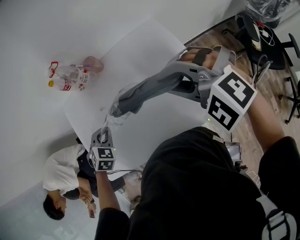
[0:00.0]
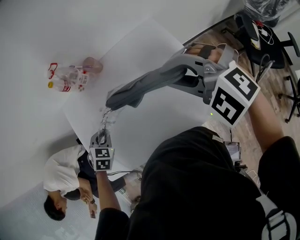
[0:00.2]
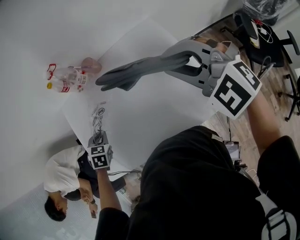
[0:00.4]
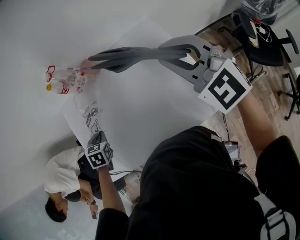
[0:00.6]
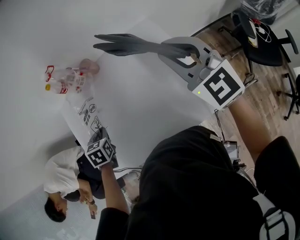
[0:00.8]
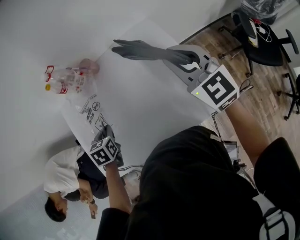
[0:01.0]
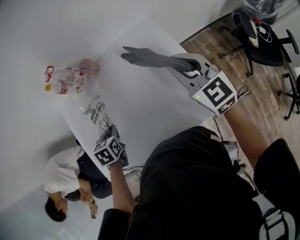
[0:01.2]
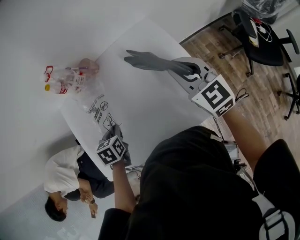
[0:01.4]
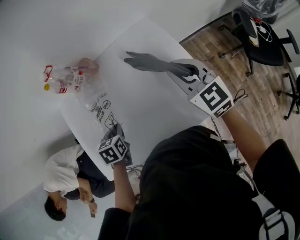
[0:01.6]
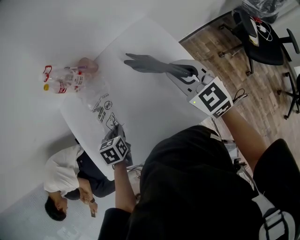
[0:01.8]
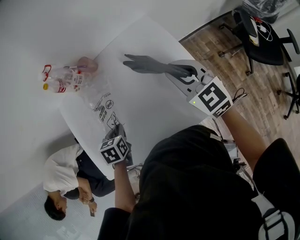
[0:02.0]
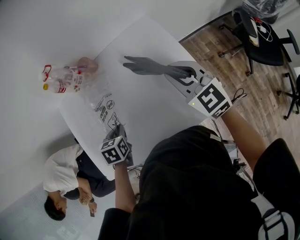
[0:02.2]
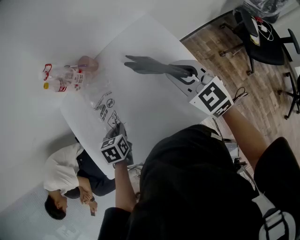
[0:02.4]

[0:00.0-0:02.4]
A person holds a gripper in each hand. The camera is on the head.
0:00.0 to 0:01.2: The left gripper rolls counterclockwise, seen from behind, by roughly 50 degrees; the right gripper goes some 10 cm to the right and downward, and rolls clockwise, seen from behind, by roughly 50 degrees.
0:01.2 to 0:02.4: The grippers move only a little.

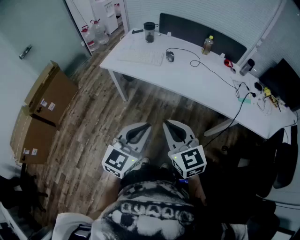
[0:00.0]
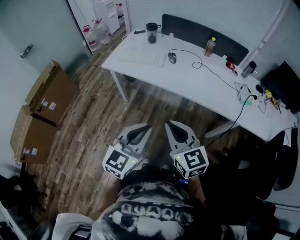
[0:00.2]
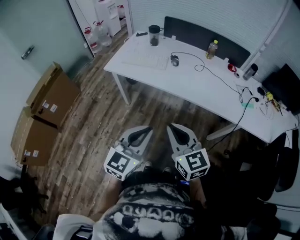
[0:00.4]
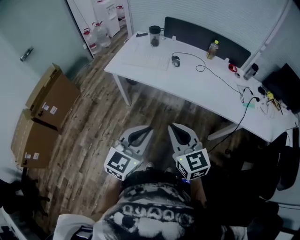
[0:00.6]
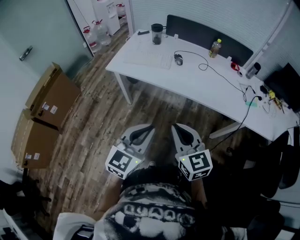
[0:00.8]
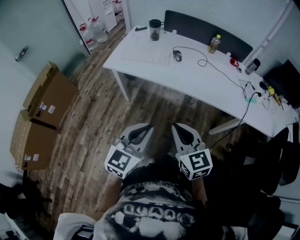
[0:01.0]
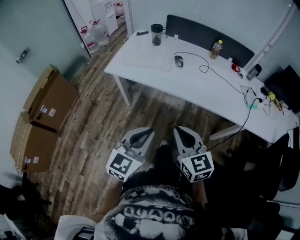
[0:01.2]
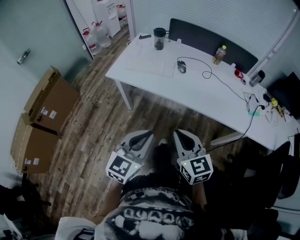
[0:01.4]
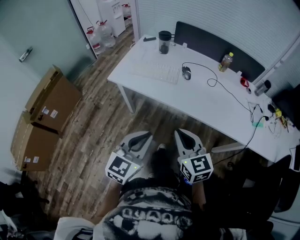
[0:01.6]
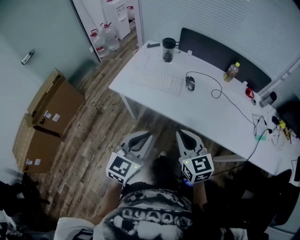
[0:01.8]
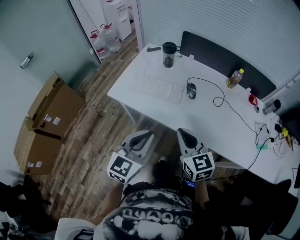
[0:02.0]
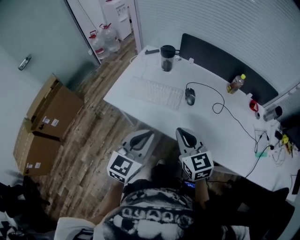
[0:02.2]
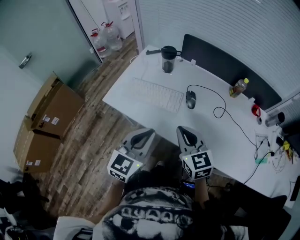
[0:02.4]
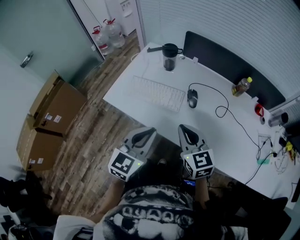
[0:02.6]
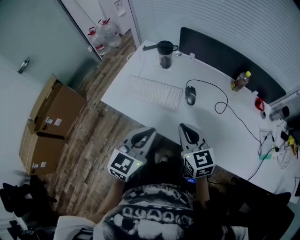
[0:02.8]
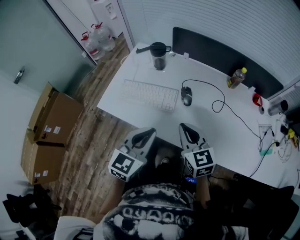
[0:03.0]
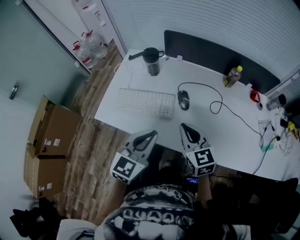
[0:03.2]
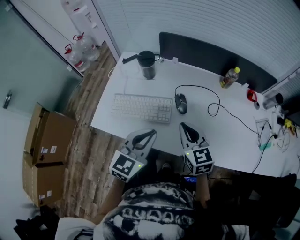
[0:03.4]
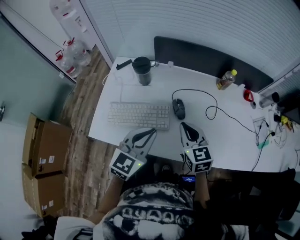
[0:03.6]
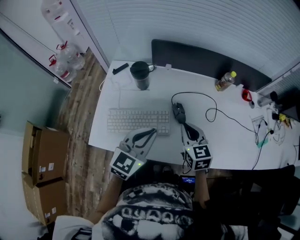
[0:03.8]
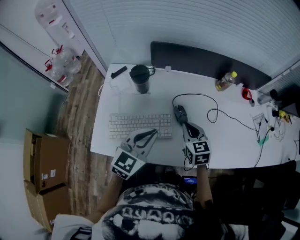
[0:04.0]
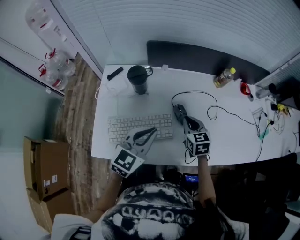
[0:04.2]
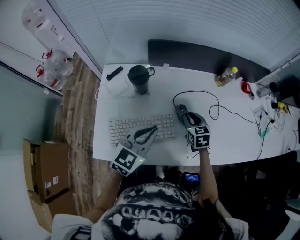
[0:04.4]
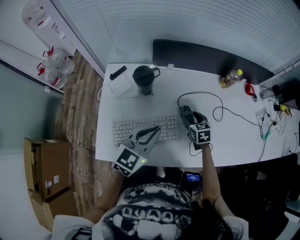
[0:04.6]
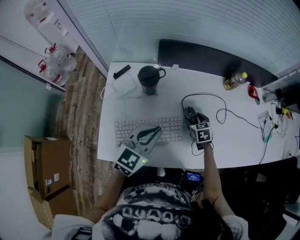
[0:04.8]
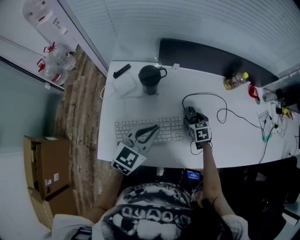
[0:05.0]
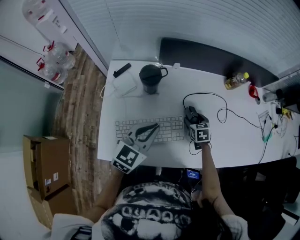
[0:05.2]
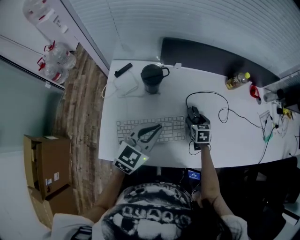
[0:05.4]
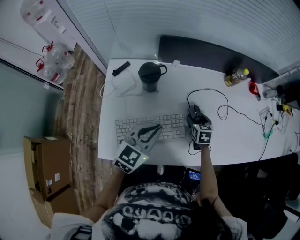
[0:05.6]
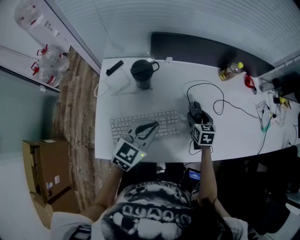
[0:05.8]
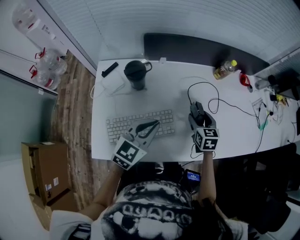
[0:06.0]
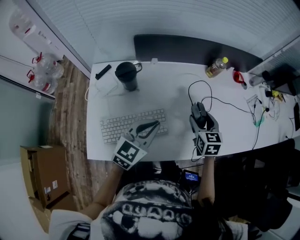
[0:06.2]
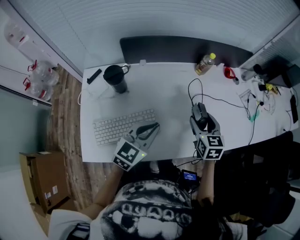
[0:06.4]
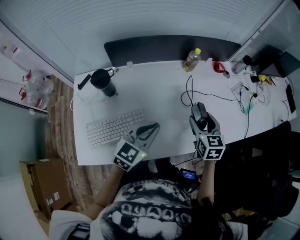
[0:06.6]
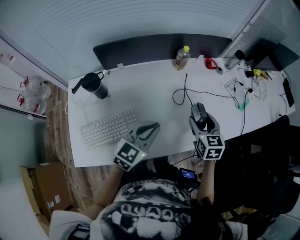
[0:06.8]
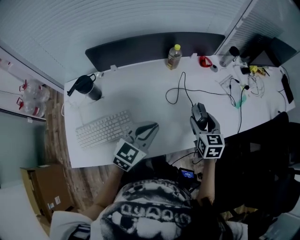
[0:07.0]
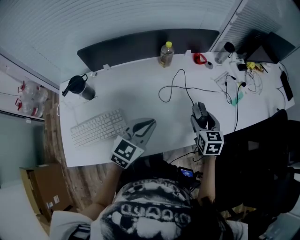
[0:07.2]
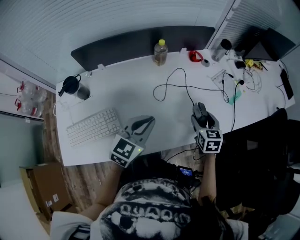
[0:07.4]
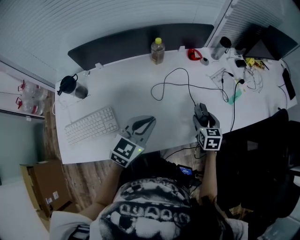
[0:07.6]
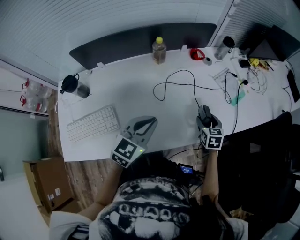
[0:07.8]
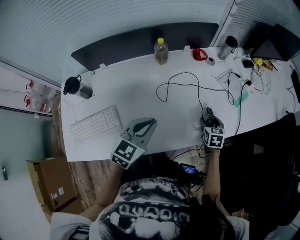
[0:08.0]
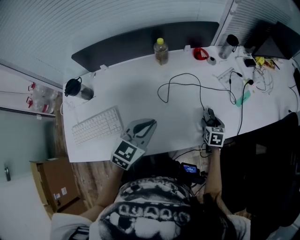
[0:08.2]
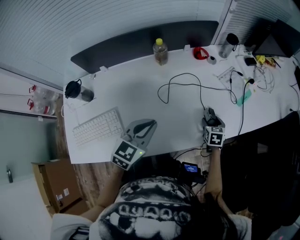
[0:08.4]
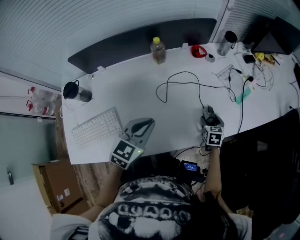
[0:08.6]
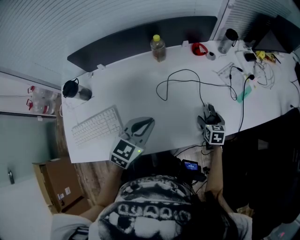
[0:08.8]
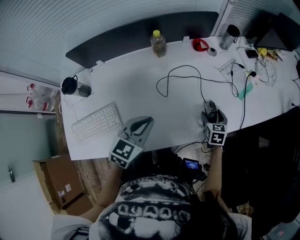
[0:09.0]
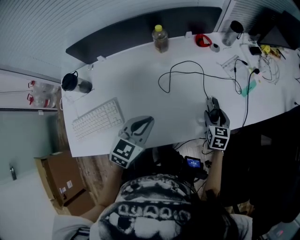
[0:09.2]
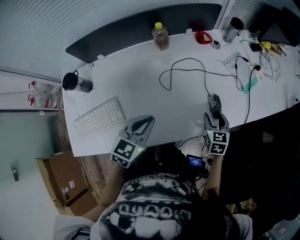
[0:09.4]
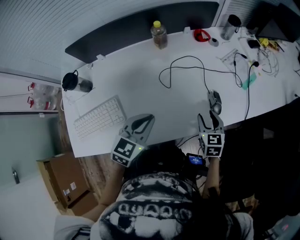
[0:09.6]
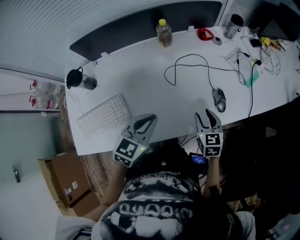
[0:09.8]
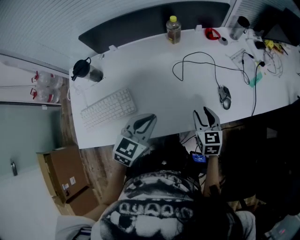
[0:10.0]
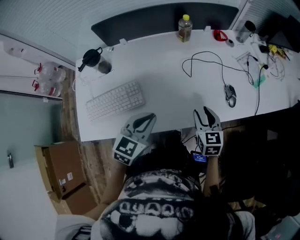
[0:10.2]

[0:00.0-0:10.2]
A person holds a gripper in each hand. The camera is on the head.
0:00.0 to 0:01.4: The left gripper shifts roughly 10 cm forward and to the left. The right gripper goes approximately 10 cm forward.
0:01.4 to 0:03.0: Both grippers move forward, approximately 35 cm.
0:03.0 to 0:04.4: The left gripper ends up some 20 cm from where it was, and turns by some 30 degrees. The right gripper moves approximately 25 cm, and swivels approximately 40 degrees.
0:04.4 to 0:05.8: The right gripper opens.
0:05.8 to 0:07.2: Both grippers travel together to the right, approximately 30 cm.
0:07.2 to 0:08.8: The left gripper moves to the right, roughly 5 cm, while the right gripper heads downward and to the right, covering about 20 cm.
0:08.8 to 0:10.2: The left gripper goes about 15 cm backward and to the left, while the right gripper is displaced to the left, backward and upward by some 25 cm, and closes its fingers.

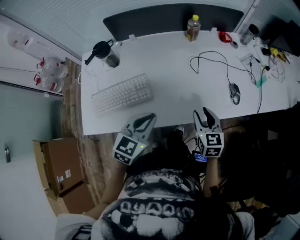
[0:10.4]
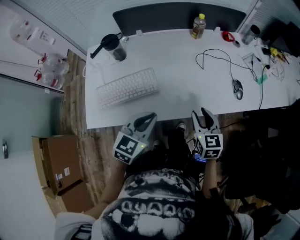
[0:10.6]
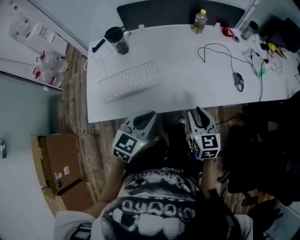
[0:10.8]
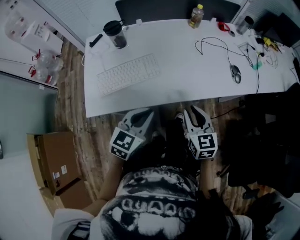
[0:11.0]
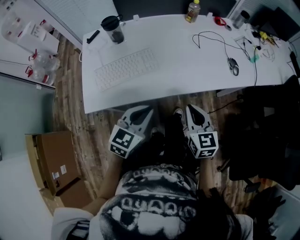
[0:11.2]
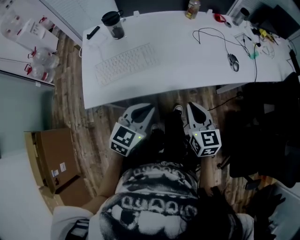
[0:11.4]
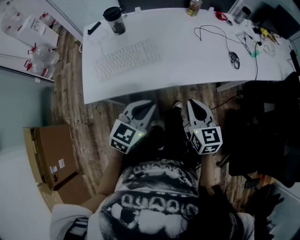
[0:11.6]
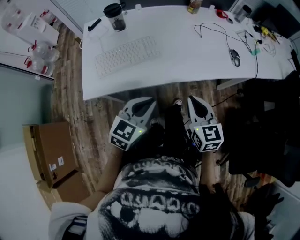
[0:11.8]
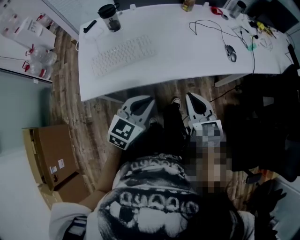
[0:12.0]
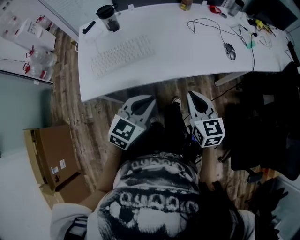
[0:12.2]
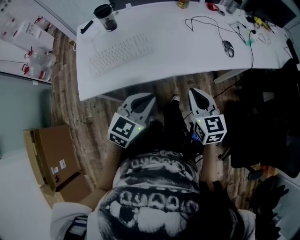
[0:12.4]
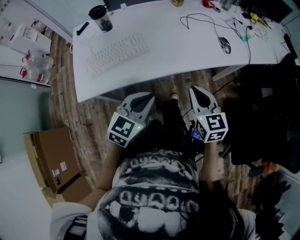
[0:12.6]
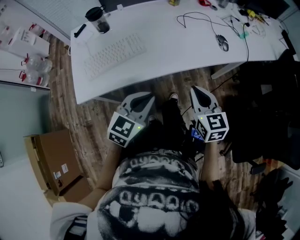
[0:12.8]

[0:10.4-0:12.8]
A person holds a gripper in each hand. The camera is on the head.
0:10.4 to 0:11.6: The left gripper goes roughly 15 cm backward. The right gripper goes some 20 cm backward and to the left, and closes up.
0:11.6 to 0:12.8: Both grippers move to the right, about 5 cm.

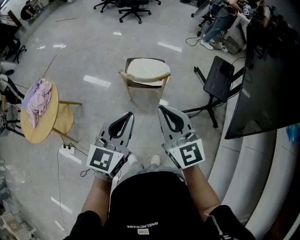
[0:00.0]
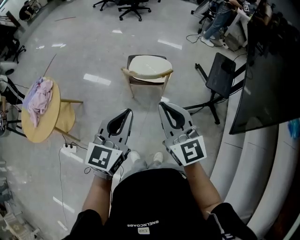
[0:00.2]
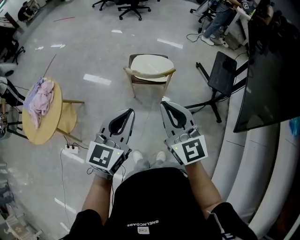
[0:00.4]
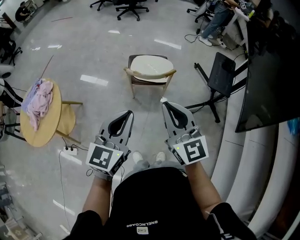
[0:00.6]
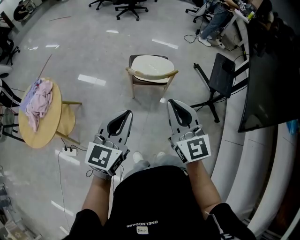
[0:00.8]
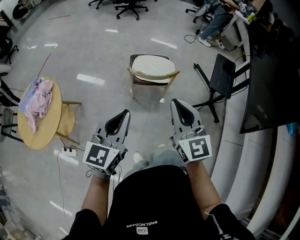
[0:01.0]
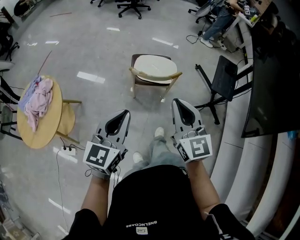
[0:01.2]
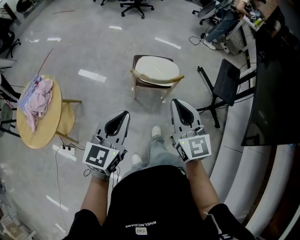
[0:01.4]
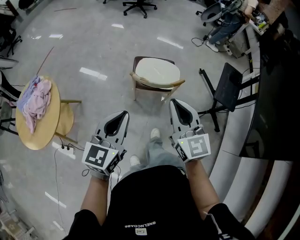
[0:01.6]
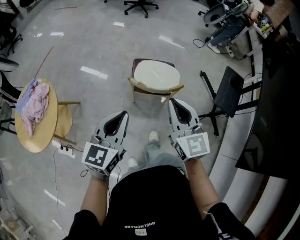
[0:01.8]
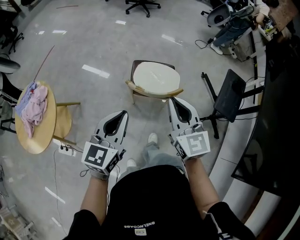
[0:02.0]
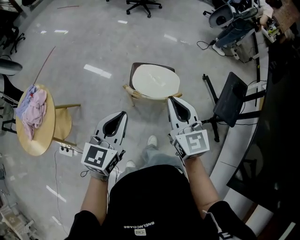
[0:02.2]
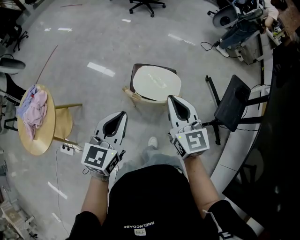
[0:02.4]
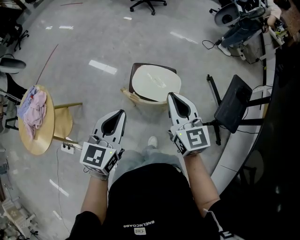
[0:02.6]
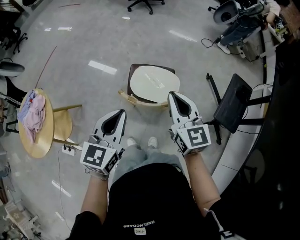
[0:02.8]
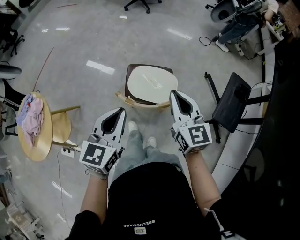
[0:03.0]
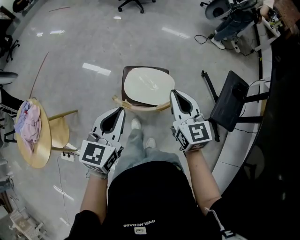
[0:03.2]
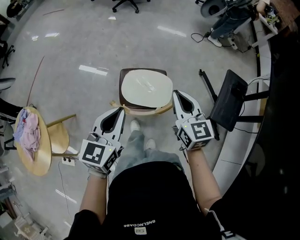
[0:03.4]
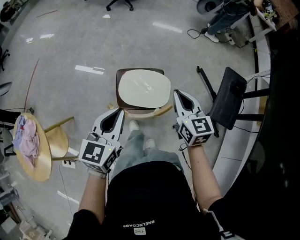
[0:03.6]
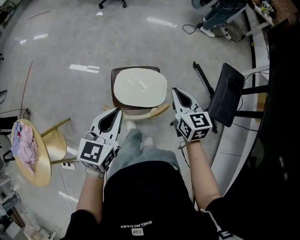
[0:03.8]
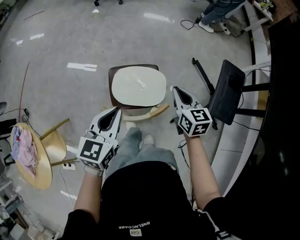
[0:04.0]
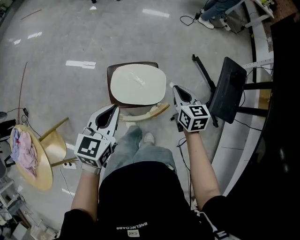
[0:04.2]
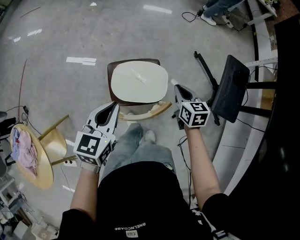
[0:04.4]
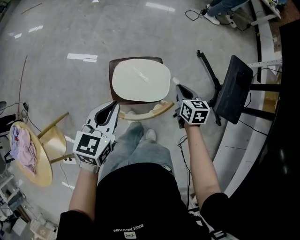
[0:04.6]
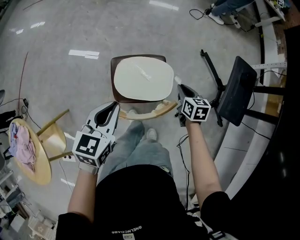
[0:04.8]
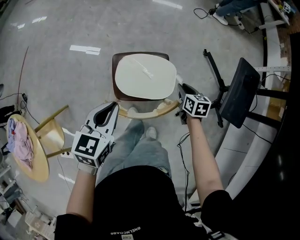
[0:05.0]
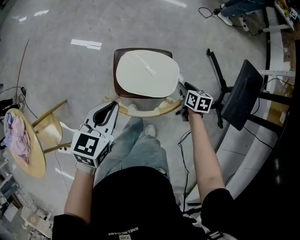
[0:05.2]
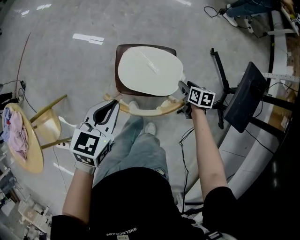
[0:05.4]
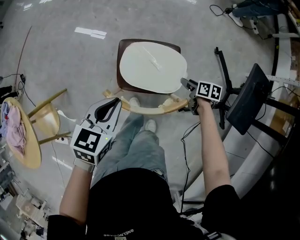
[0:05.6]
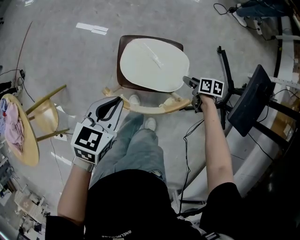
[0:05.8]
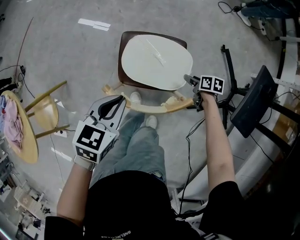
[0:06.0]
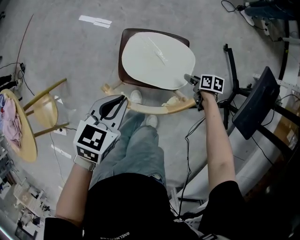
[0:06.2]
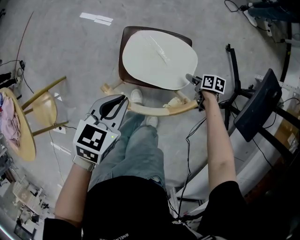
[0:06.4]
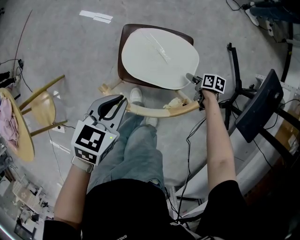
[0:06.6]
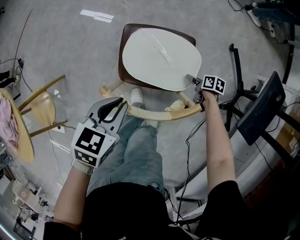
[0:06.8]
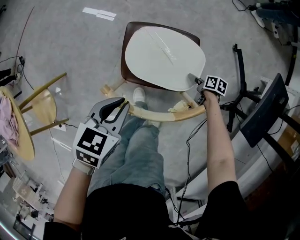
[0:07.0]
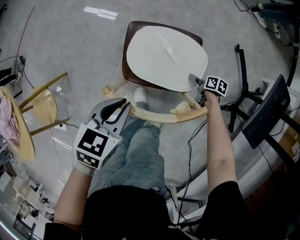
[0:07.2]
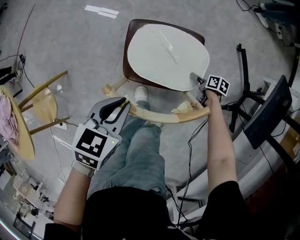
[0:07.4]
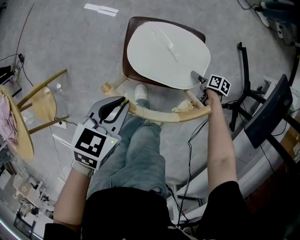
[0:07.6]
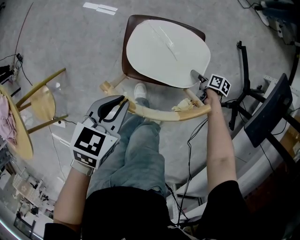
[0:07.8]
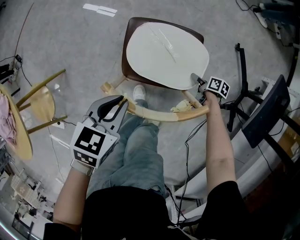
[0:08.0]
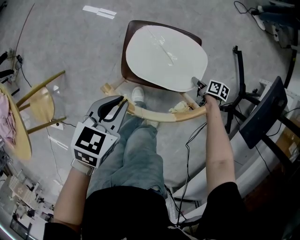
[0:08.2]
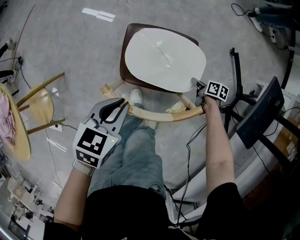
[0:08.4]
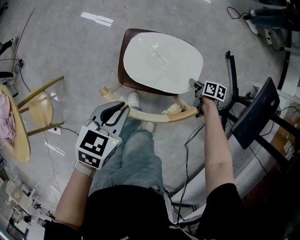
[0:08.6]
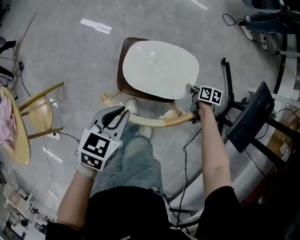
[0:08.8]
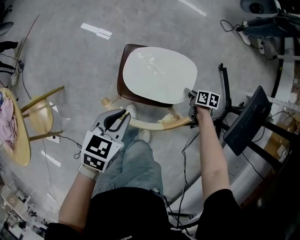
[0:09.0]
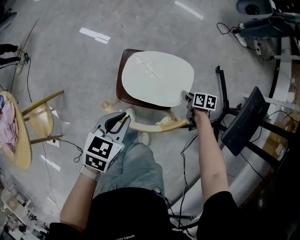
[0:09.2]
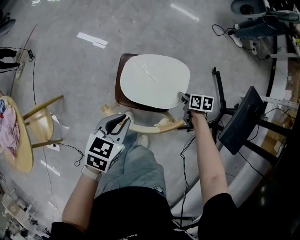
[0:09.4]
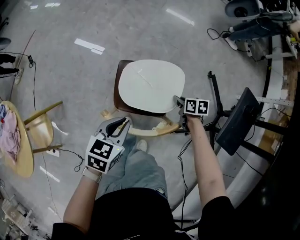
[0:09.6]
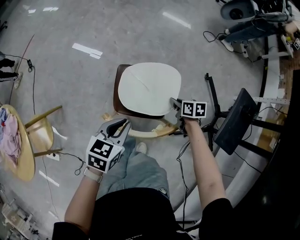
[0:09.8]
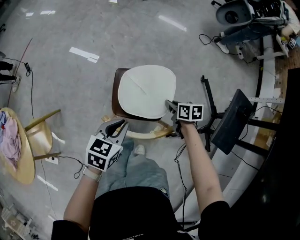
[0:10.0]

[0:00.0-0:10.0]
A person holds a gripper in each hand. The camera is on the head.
0:00.0 to 0:01.4: The left gripper shifts about 15 cm to the left. The right gripper moves to the left and forward, some 10 cm.
0:01.4 to 0:02.8: Both grippers travel together forward and to the right, roughly 25 cm.
0:02.8 to 0:04.2: The left gripper travels forward and downward by roughly 20 cm. Meanwhile the right gripper shifts some 25 cm downward, forward and to the right, and changes its angle by approximately 30 degrees.
0:04.2 to 0:05.8: The left gripper is displaced downward by about 15 cm; the right gripper moves downward, approximately 30 cm, swivels roughly 40 degrees, and opens up.
0:05.8 to 0:07.2: The right gripper is displaced downward by some 15 cm, while the left gripper is displaced downward by roughly 10 cm.
0:07.2 to 0:08.6: The right gripper is displaced upward by about 5 cm, and closes its fingers.
0:08.6 to 0:10.0: The left gripper goes about 5 cm upward. The right gripper travels upward and to the left by about 20 cm.
